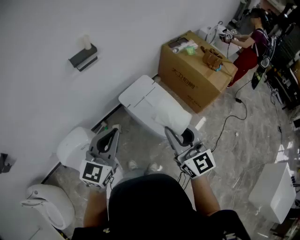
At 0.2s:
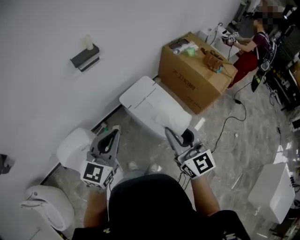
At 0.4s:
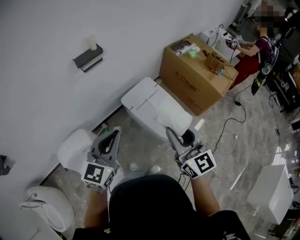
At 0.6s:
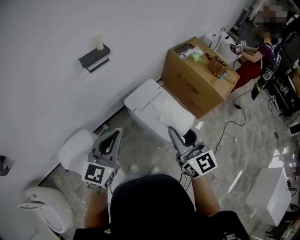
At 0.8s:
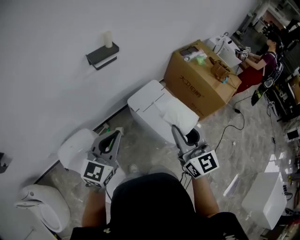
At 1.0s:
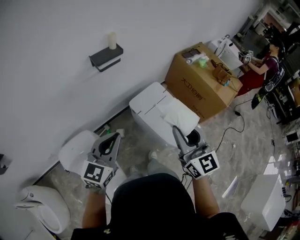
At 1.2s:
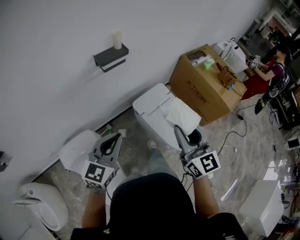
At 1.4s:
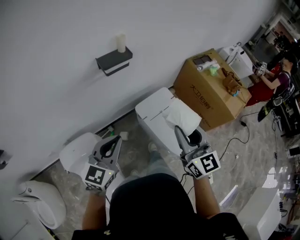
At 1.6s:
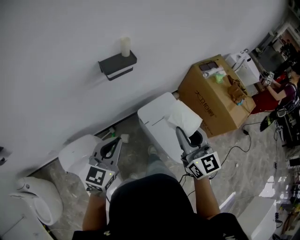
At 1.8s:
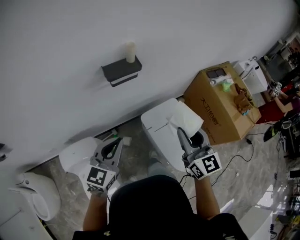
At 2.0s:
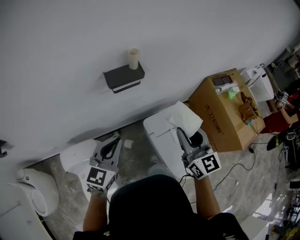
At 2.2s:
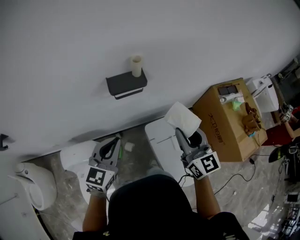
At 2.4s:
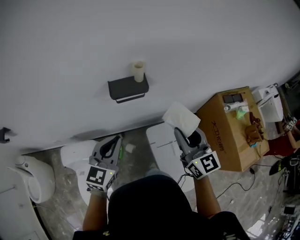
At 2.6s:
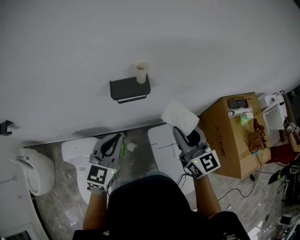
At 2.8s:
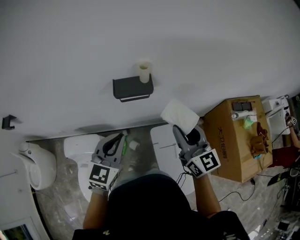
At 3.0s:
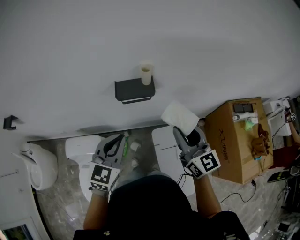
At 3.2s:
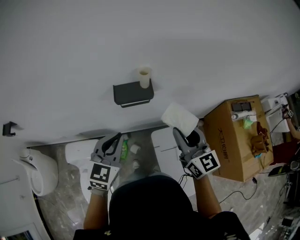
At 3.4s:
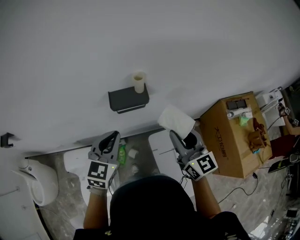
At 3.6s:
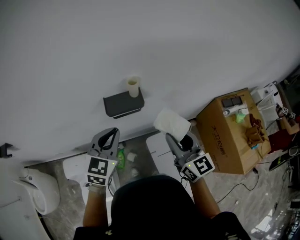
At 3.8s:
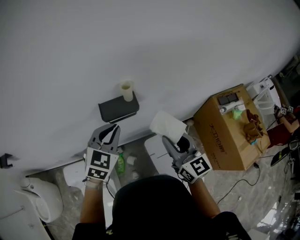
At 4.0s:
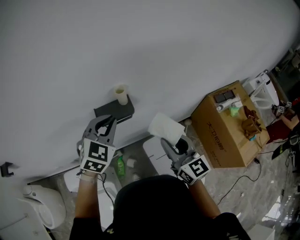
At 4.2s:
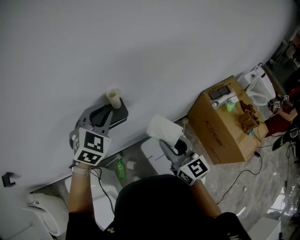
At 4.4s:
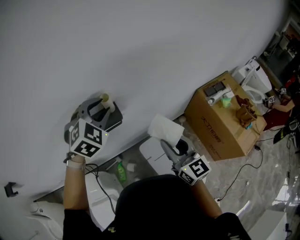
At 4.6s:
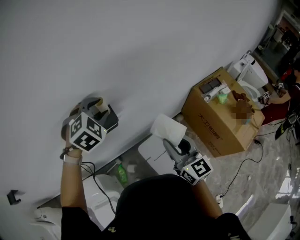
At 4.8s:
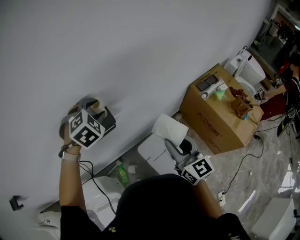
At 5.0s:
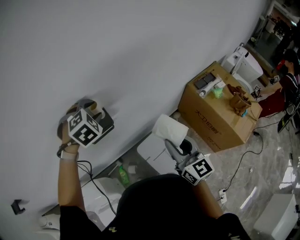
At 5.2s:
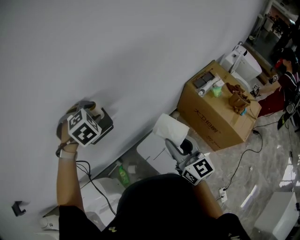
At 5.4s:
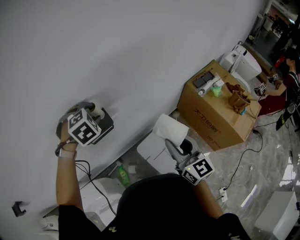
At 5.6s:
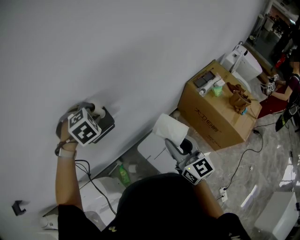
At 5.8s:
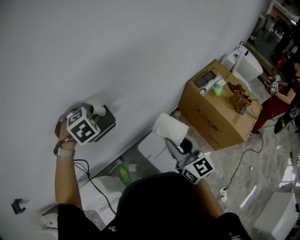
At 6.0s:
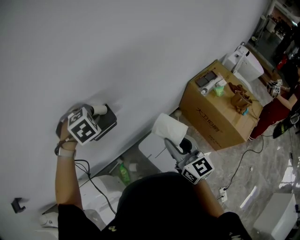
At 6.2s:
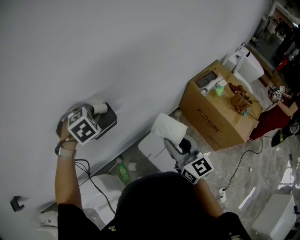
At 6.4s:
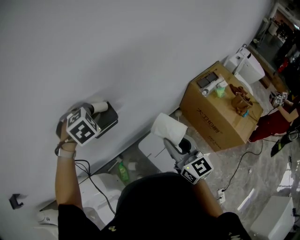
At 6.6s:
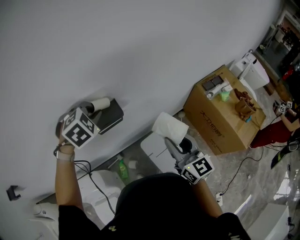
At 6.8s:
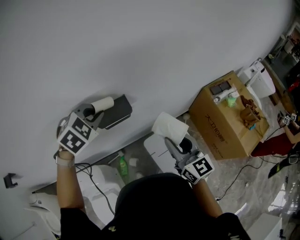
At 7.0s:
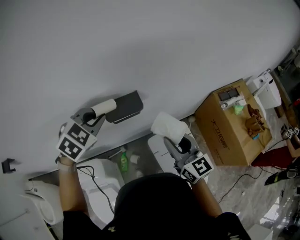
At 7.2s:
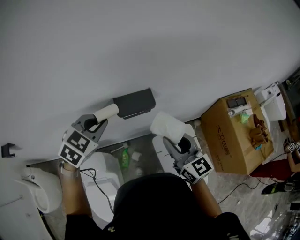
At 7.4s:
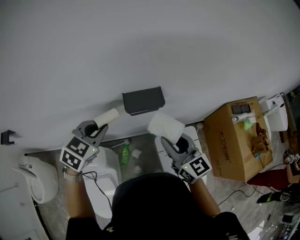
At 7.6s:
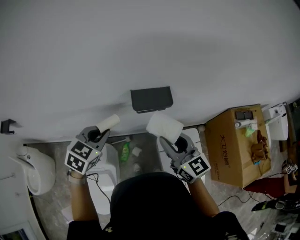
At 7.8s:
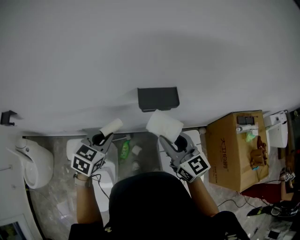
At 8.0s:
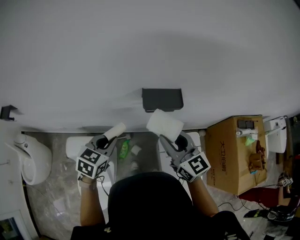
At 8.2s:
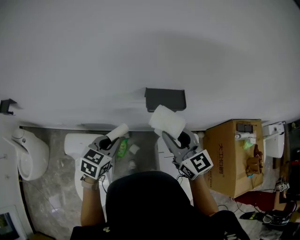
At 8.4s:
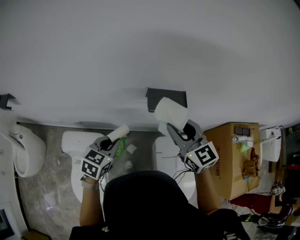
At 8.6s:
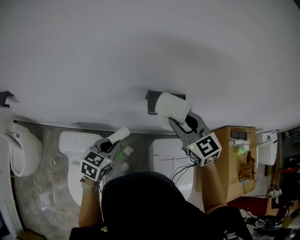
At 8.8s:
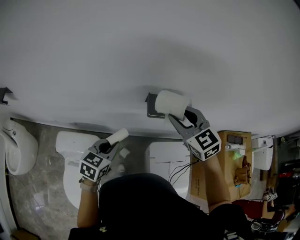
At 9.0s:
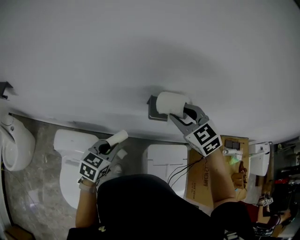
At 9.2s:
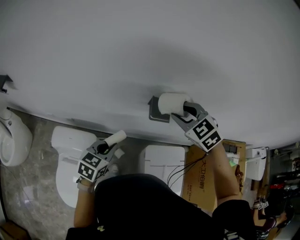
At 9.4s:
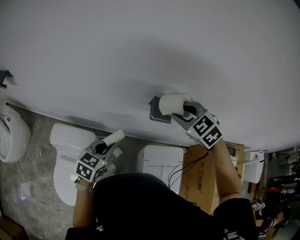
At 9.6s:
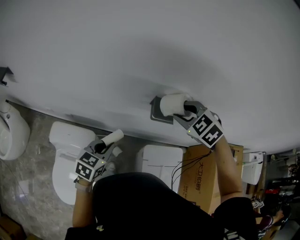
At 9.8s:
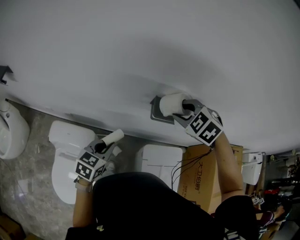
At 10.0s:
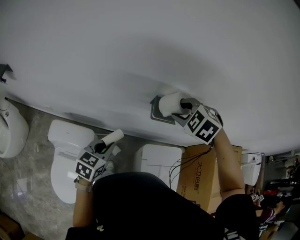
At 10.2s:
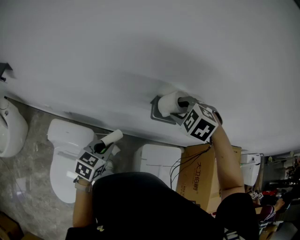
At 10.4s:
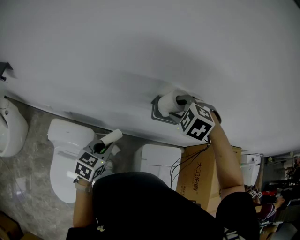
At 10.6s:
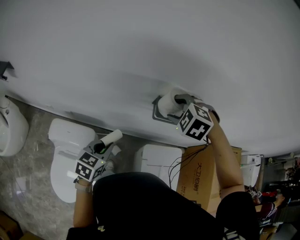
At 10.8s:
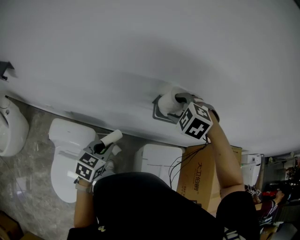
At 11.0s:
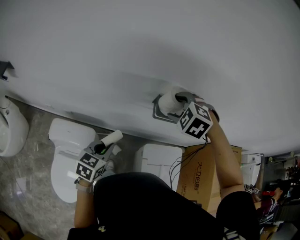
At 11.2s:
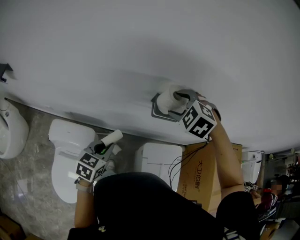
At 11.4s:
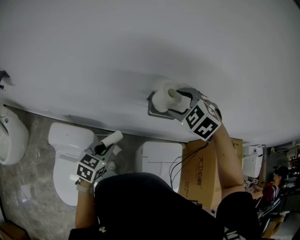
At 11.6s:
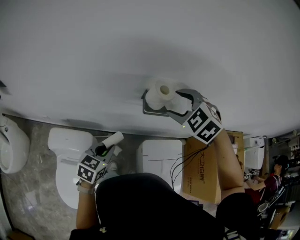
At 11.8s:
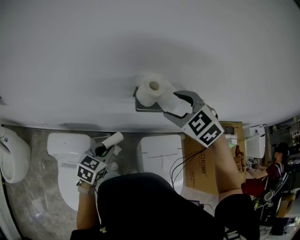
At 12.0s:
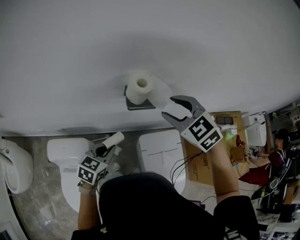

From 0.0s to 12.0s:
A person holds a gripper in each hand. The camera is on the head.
From 0.0s to 1.6s: The left gripper heads to the left, forward and downward, covering about 20 cm, while the right gripper travels forward and to the left by some 25 cm.
From 1.6s to 3.0s: The right gripper shifts by roughly 25 cm, and turns by approximately 30 degrees. The left gripper ends up some 20 cm from where it was, and swivels about 30 degrees.
From 3.0s to 4.4s: The left gripper travels forward by about 20 cm, rotates about 40 degrees, and opens up.
From 4.4s to 6.0s: The left gripper is displaced downward by about 10 cm, tilts its fingers about 30 degrees downward, and closes up.
From 6.0s to 7.6s: The right gripper moves to the left, roughly 20 cm, and rotates approximately 30 degrees. Meanwhile the left gripper goes roughly 25 cm to the left and backward, and twists roughly 50 degrees counterclockwise, seen from behind.
From 7.6s to 9.0s: The left gripper travels downward and backward by roughly 10 cm, and swivels about 20 degrees. Meanwhile the right gripper goes approximately 15 cm forward and to the left, and points its fingers roughly 30 degrees further downward.
From 9.0s to 10.4s: The right gripper turns by roughly 40 degrees.
From 10.4s to 12.0s: The right gripper moves to the right and backward, roughly 10 cm, and swivels roughly 40 degrees. The left gripper is displaced to the right by roughly 10 cm.

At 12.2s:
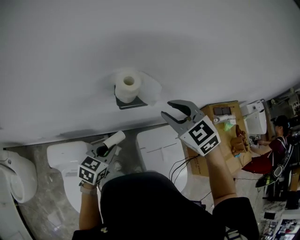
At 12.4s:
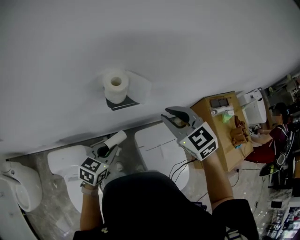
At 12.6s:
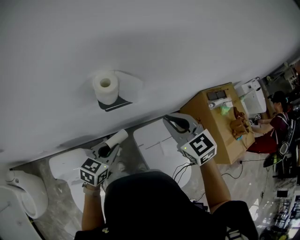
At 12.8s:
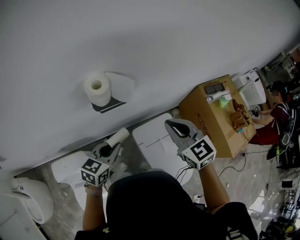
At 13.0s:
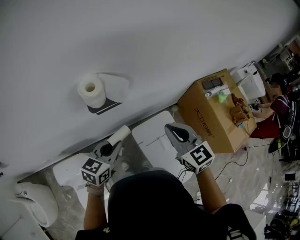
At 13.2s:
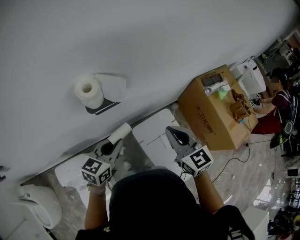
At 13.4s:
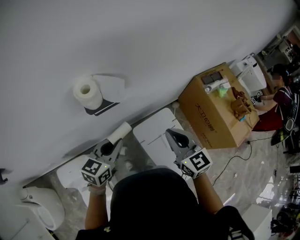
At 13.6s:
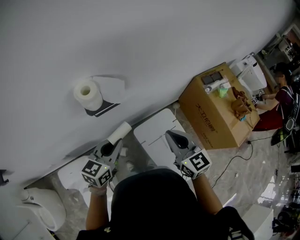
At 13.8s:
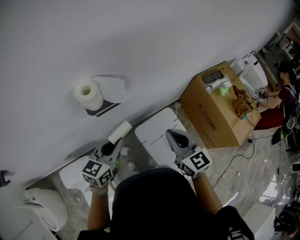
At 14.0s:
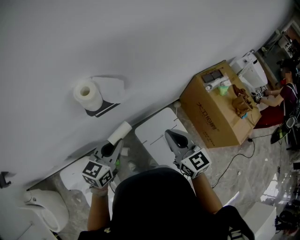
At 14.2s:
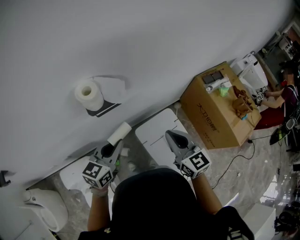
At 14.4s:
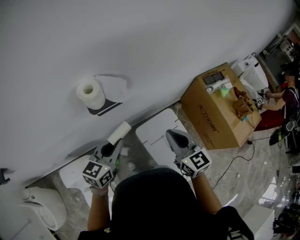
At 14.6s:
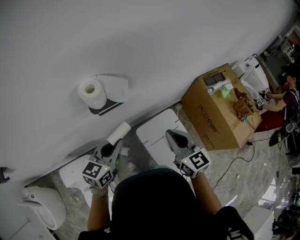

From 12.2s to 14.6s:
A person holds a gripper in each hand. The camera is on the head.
From 12.2s to 13.4s: The right gripper moves to the right, backward and downward, about 20 cm, changes its angle by approximately 40 degrees, and closes its fingers; the left gripper shifts about 10 cm to the right and upward.
From 13.4s to 14.6s: The grippers stay close to where they were, moving slightly.

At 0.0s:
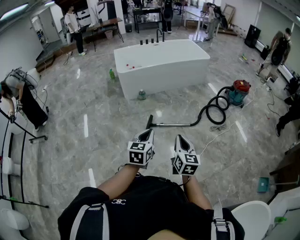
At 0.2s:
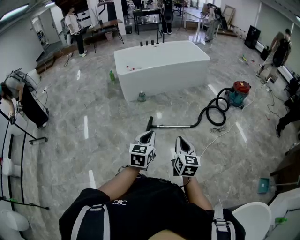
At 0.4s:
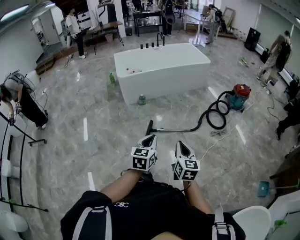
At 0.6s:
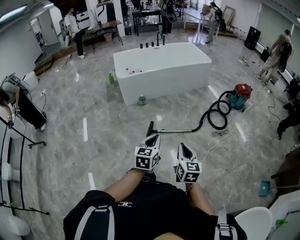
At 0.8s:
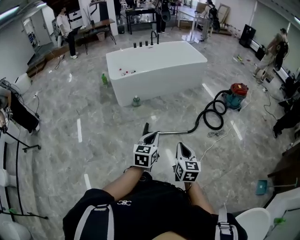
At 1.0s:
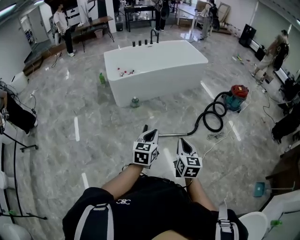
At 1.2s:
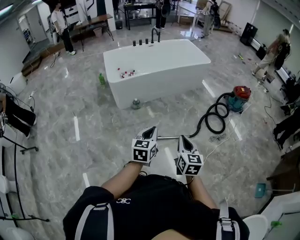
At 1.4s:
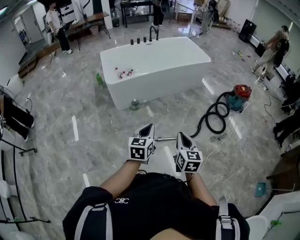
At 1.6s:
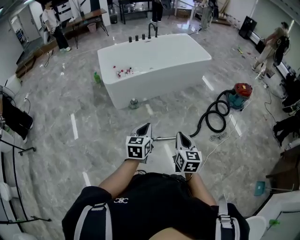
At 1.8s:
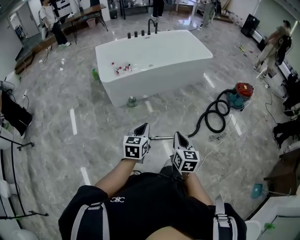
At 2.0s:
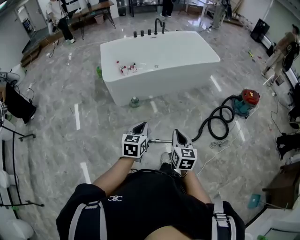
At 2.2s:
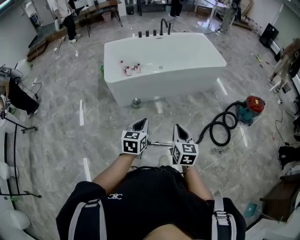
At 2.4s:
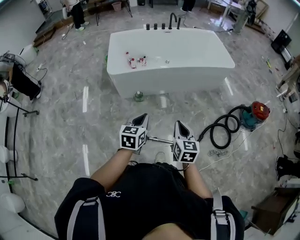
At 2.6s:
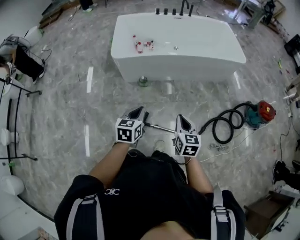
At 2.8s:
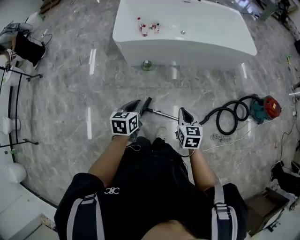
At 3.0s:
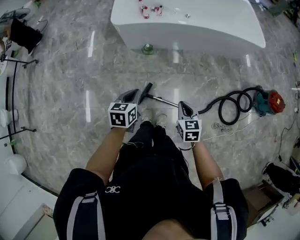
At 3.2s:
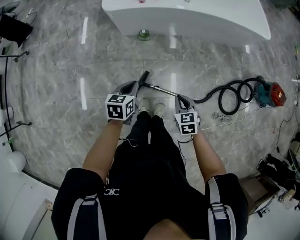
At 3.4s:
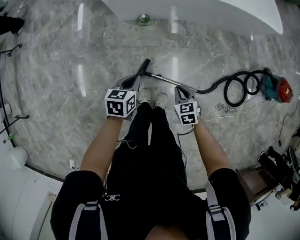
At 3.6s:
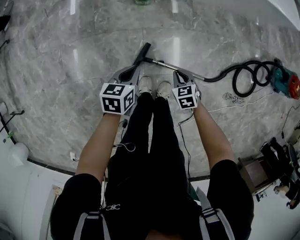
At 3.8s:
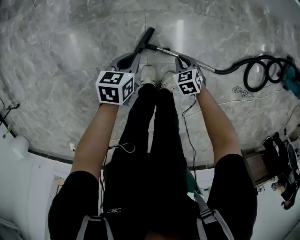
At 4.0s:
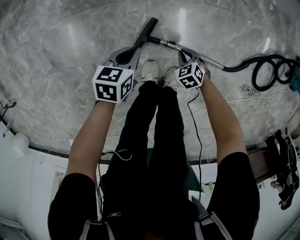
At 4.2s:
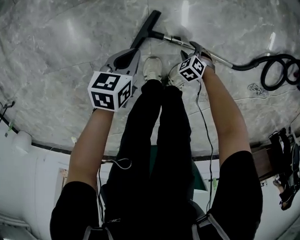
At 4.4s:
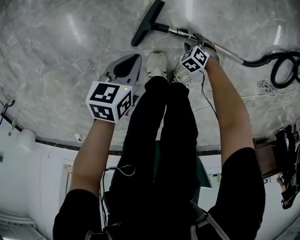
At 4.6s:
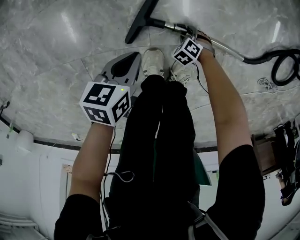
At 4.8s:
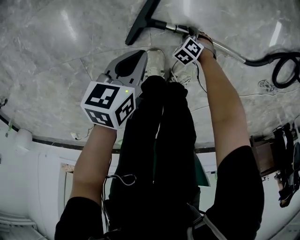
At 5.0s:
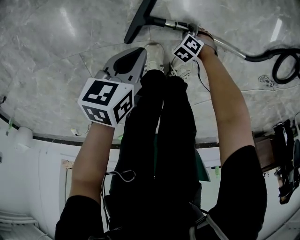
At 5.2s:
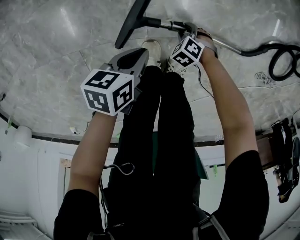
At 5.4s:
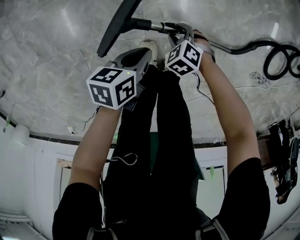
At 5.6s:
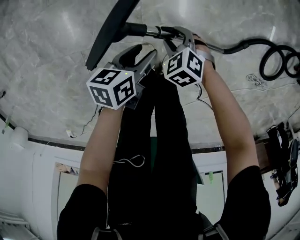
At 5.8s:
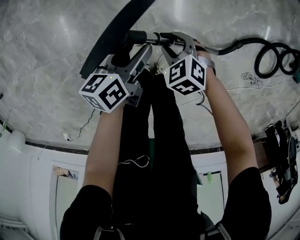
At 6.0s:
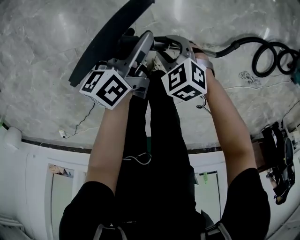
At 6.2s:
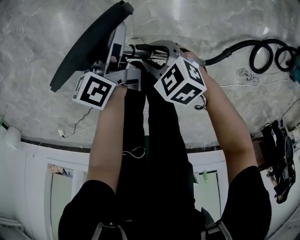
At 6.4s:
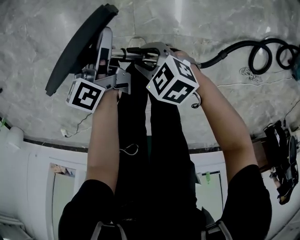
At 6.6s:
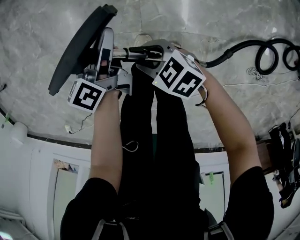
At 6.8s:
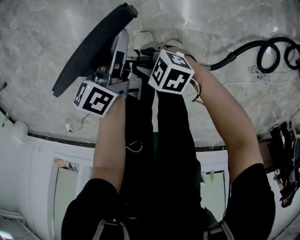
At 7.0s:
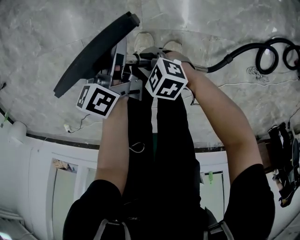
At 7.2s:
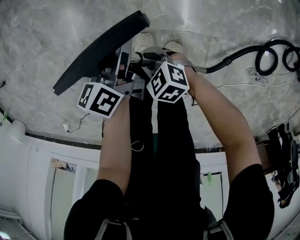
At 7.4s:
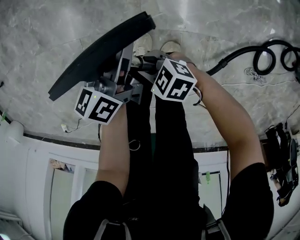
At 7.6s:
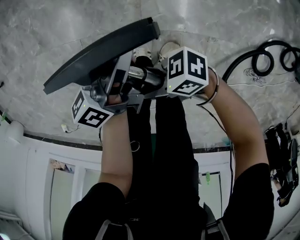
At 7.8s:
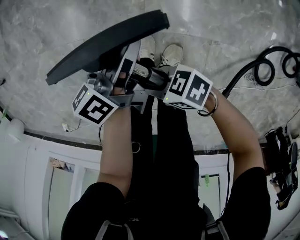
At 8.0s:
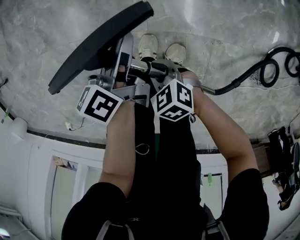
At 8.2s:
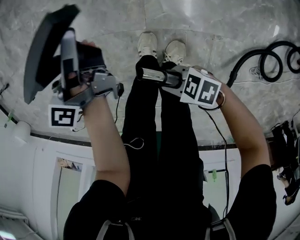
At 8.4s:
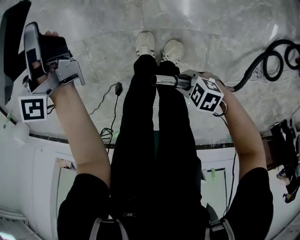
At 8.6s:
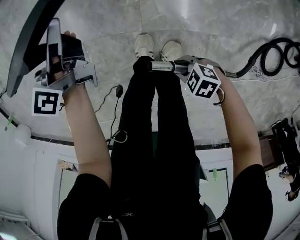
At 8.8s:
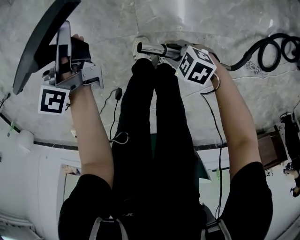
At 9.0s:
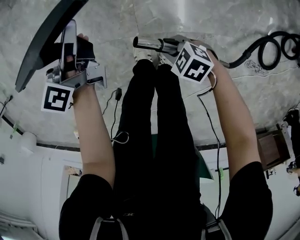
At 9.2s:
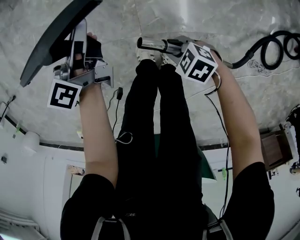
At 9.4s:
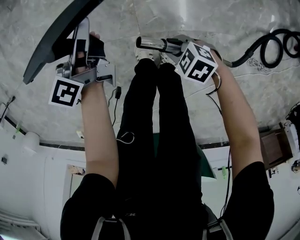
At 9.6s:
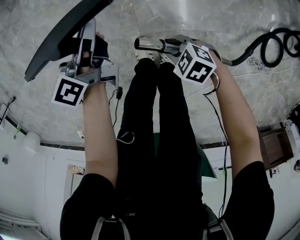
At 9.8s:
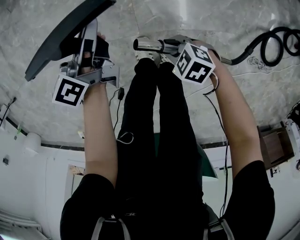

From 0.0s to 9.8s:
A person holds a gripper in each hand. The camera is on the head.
From 0.0s to 1.4s: The grippers both shift forward by approximately 30 cm.
From 1.4s to 2.8s: Both grippers move forward and downward, roughly 30 cm. The left gripper turns by roughly 30 degrees; the right gripper turns by some 30 degrees.
From 2.8s to 4.2s: The two grippers go about 70 cm downward. The left gripper changes its angle by approximately 30 degrees; the right gripper points its fingers some 50 degrees further downward, and opens.
From 4.2s to 5.6s: The right gripper heads upward, covering roughly 15 cm. The left gripper moves roughly 10 cm, changes its angle by approximately 20 degrees, and opens up.
From 5.6s to 7.0s: The left gripper is displaced upward by roughly 10 cm, turns by approximately 40 degrees, and closes up, while the right gripper ends up about 20 cm from where it was, turns by about 30 degrees, and closes.
From 7.0s to 8.4s: The right gripper moves some 10 cm upward and comes back; the left gripper swings up and down, approximately 15 cm each way, with 2 reversals, and swivels about 20 degrees.
From 8.4s to 9.8s: The left gripper ends up some 15 cm from where it was, and turns by about 20 degrees; the right gripper moves roughly 15 cm, and swivels some 20 degrees.
